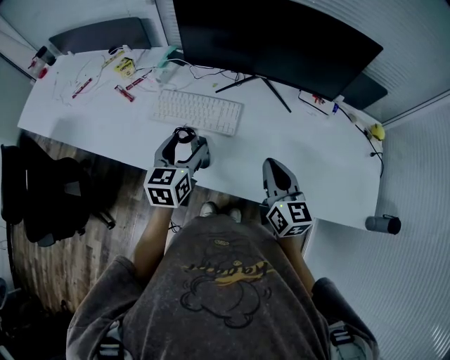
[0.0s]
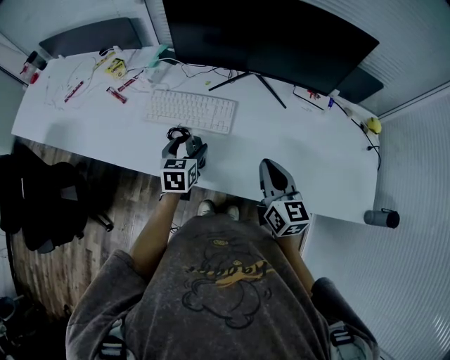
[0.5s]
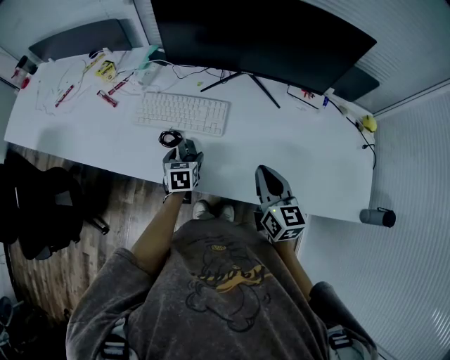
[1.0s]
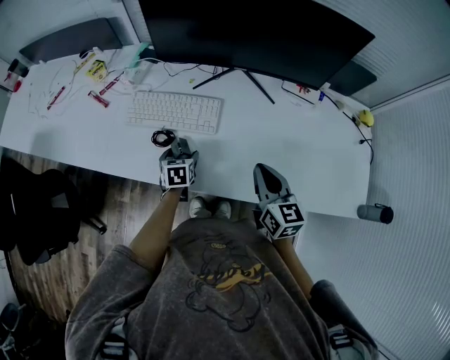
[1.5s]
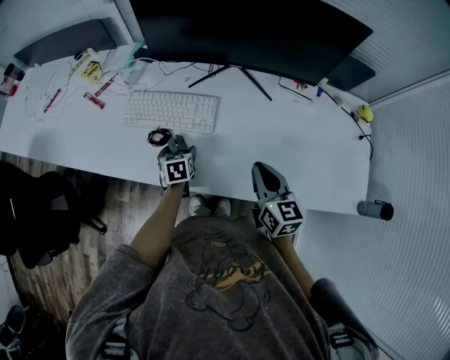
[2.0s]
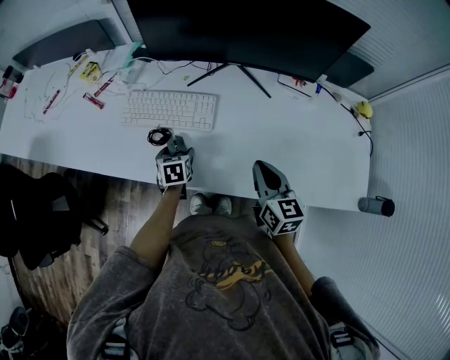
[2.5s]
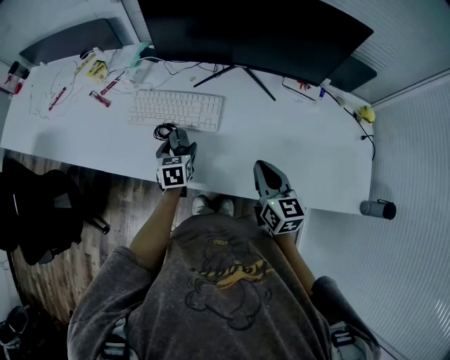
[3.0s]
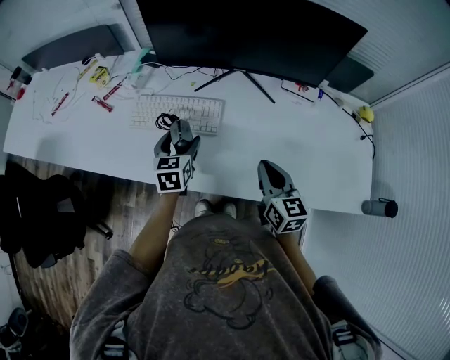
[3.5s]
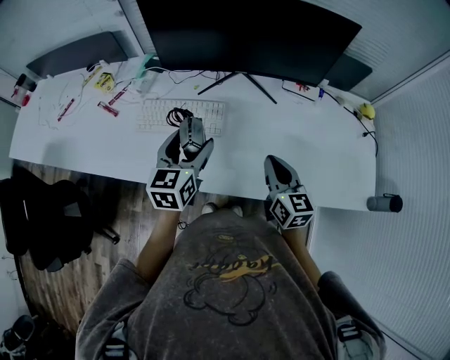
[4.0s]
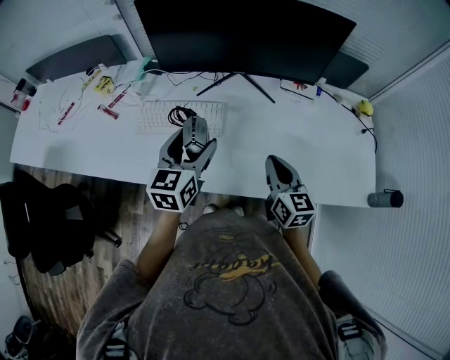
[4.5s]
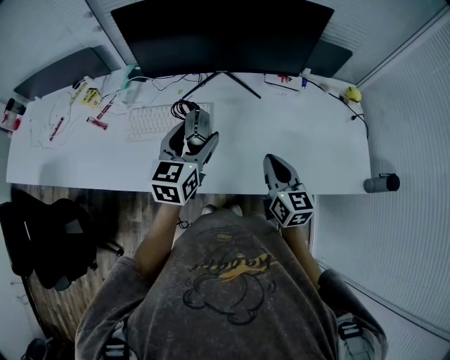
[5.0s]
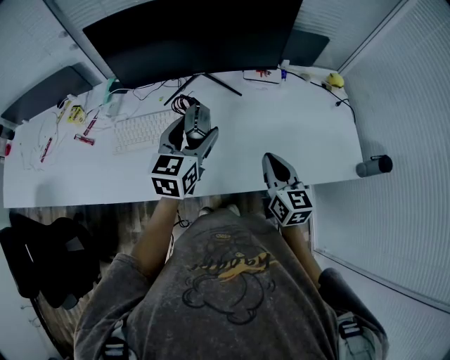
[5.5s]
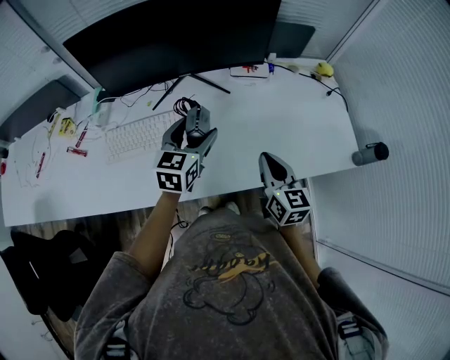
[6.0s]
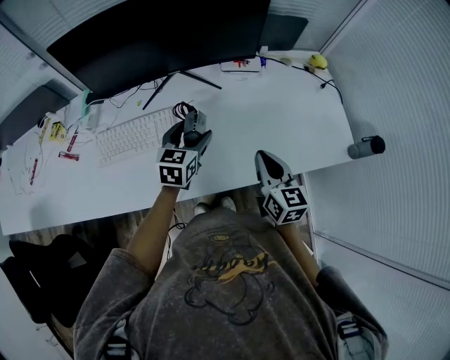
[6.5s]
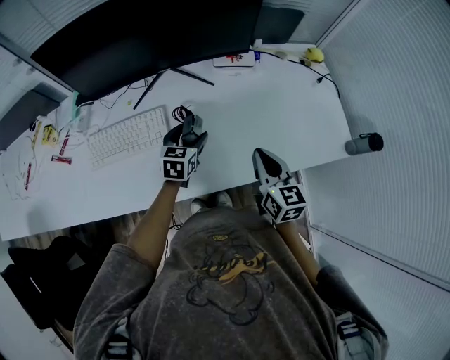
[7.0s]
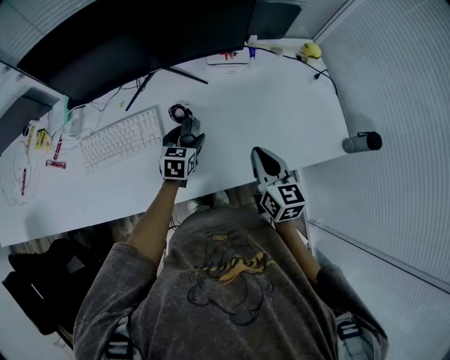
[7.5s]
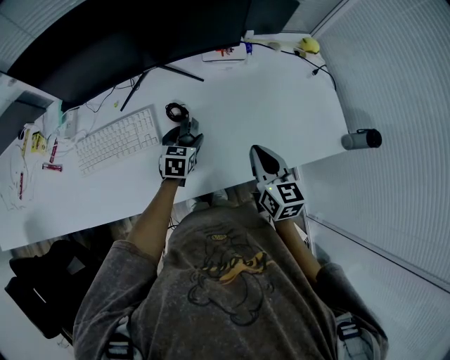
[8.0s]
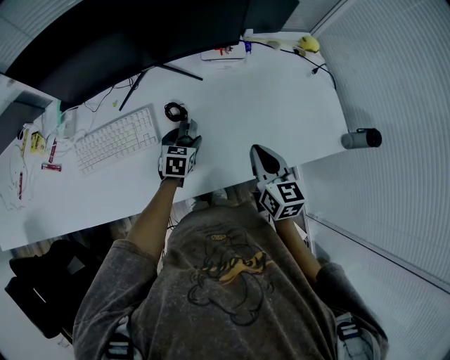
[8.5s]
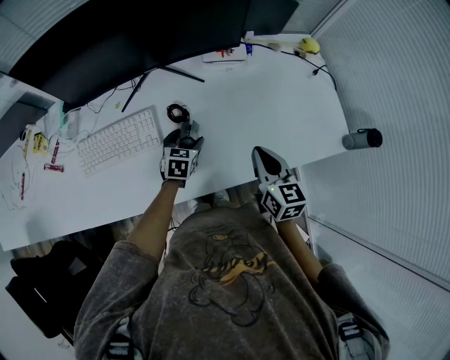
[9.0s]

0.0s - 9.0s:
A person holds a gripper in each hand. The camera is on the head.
0.0s - 2.0s: The right gripper ends up roughly 5 cm from where it was, while the left gripper is displaced downward by about 20 cm, and swivels some 30 degrees.
2.0s - 4.5s: The left gripper heads upward, covering approximately 25 cm, and tips its fingers upward by some 40 degrees.
4.5s - 7.0s: The right gripper is displaced to the right by roughly 10 cm; the left gripper heads downward, to the right and forward, covering roughly 25 cm, and rotates some 30 degrees.
7.0s - 9.0s: The left gripper shifts roughly 10 cm downward.

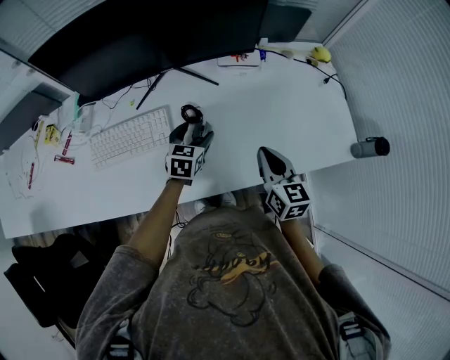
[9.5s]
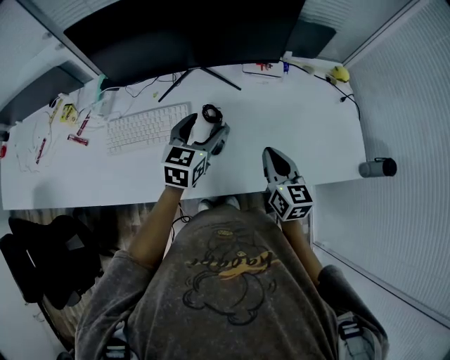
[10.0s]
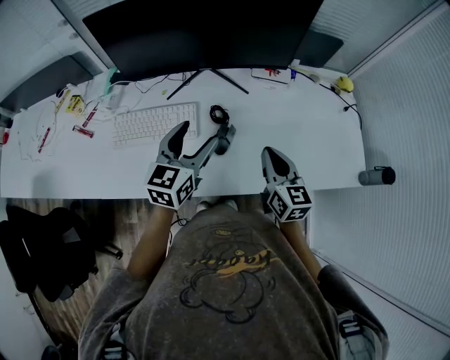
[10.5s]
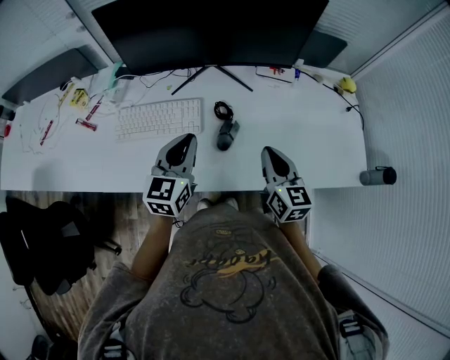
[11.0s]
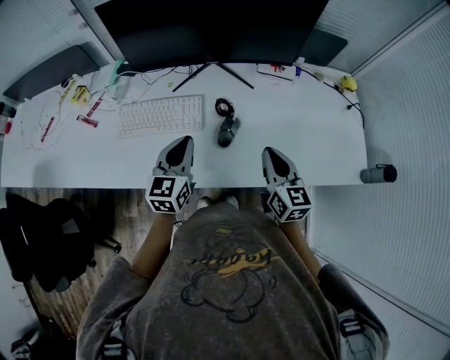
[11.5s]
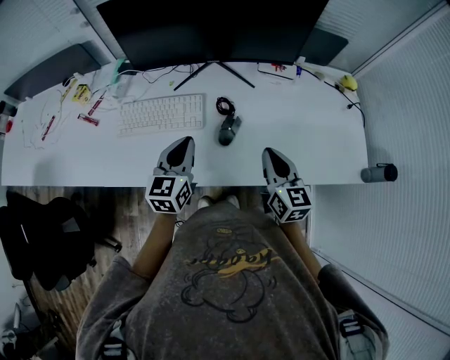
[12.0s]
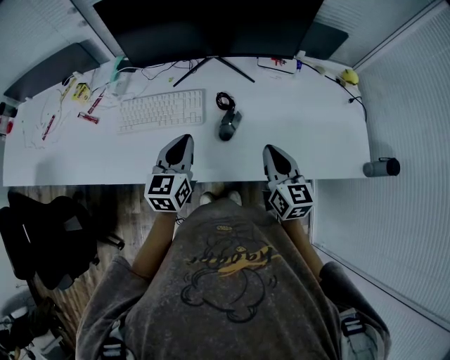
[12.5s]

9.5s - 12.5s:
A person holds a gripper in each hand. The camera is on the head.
9.5s - 11.0s: The left gripper heads upward, backward and to the left, covering roughly 20 cm, swivels about 30 degrees, and closes up; the right gripper is displaced to the left by about 5 cm.
11.0s - 12.5s: There are only small adjustments of the grippers.

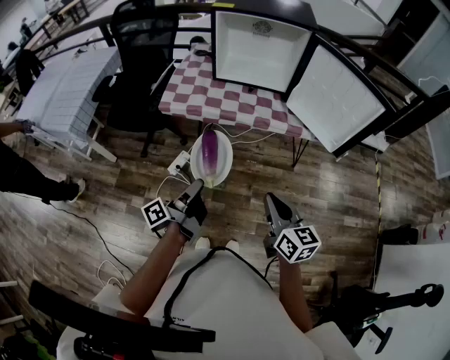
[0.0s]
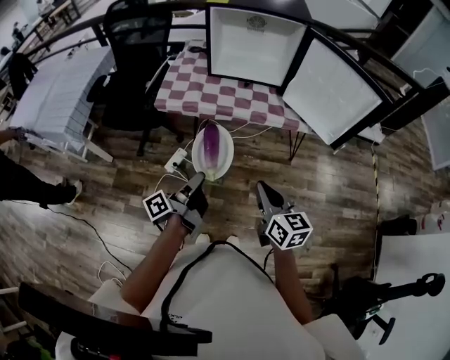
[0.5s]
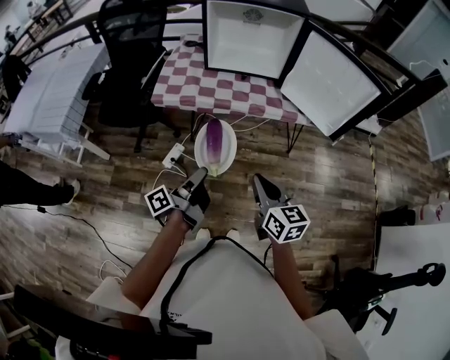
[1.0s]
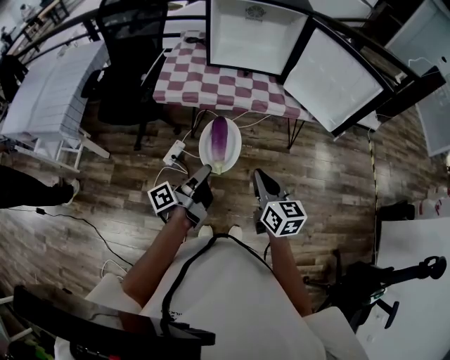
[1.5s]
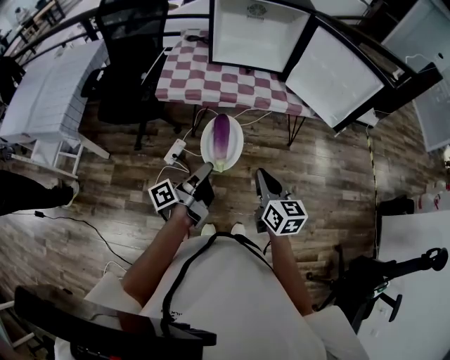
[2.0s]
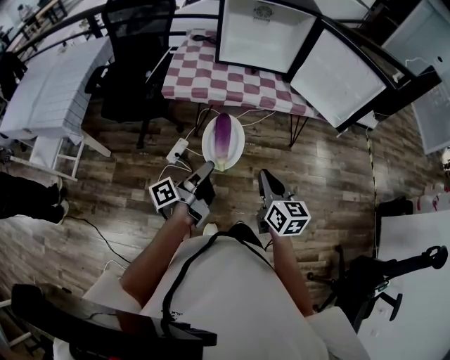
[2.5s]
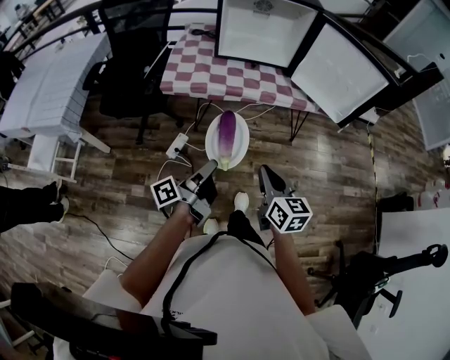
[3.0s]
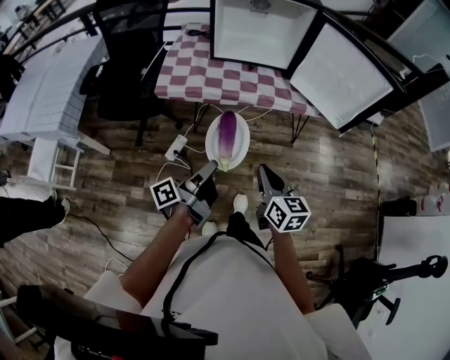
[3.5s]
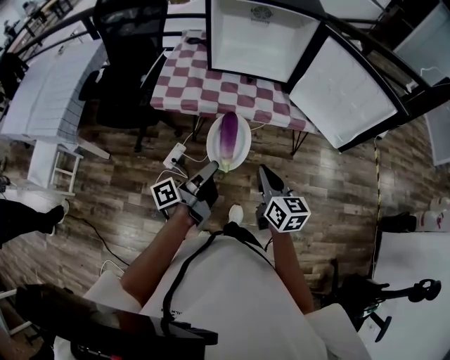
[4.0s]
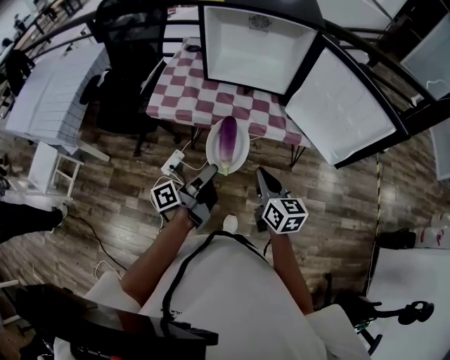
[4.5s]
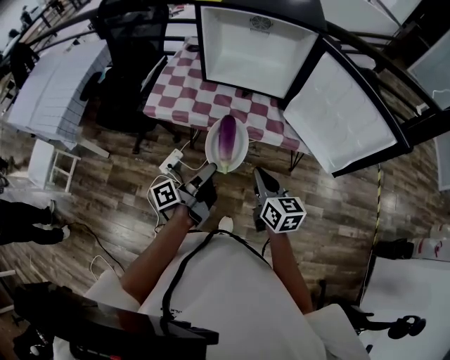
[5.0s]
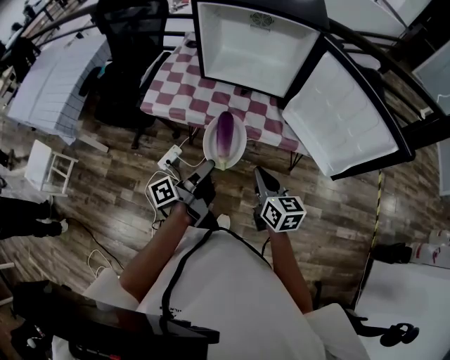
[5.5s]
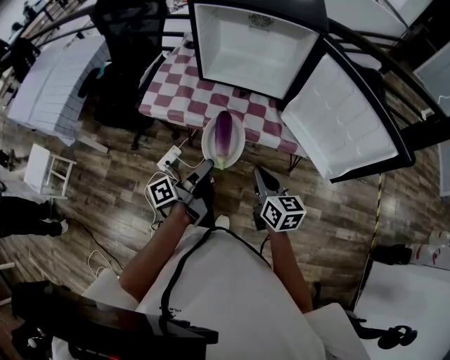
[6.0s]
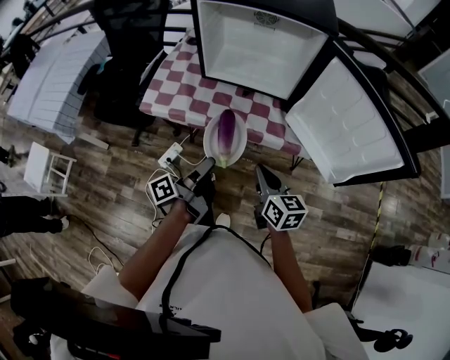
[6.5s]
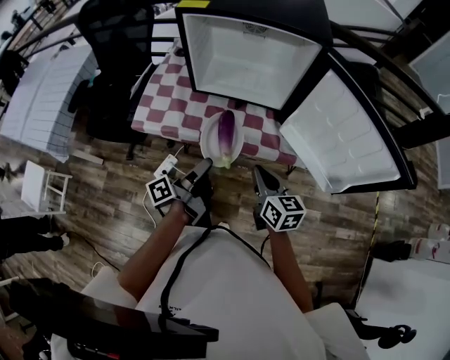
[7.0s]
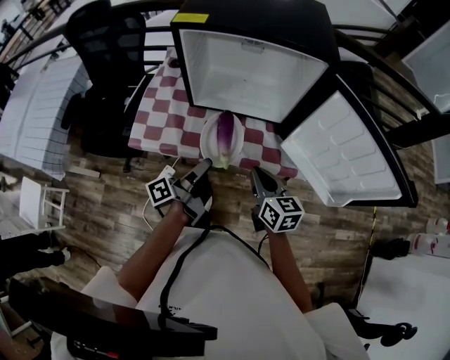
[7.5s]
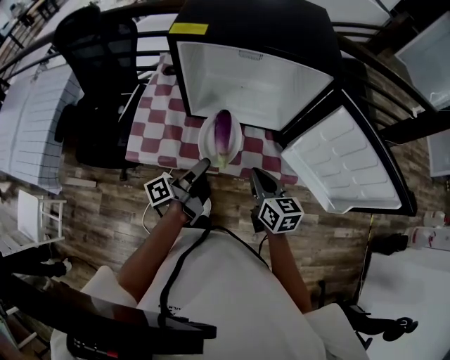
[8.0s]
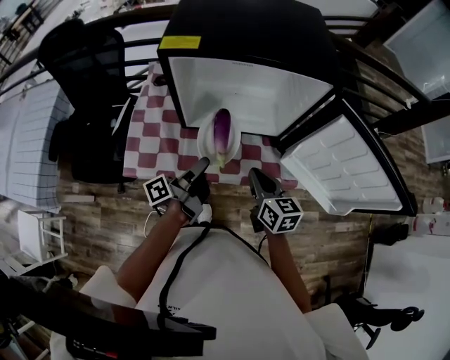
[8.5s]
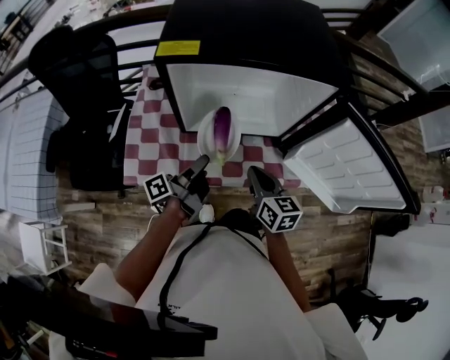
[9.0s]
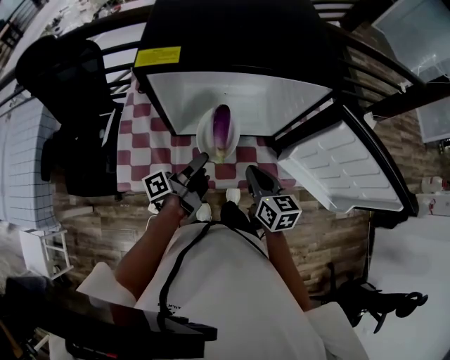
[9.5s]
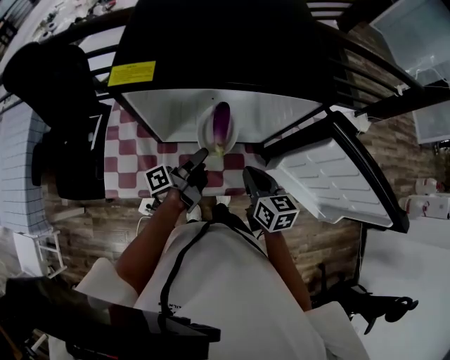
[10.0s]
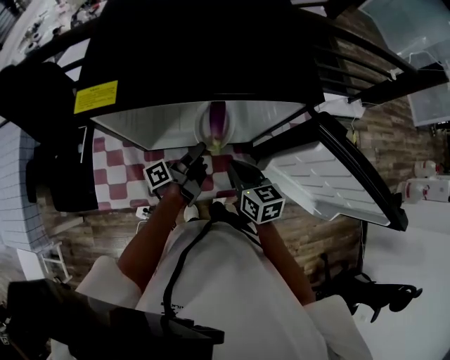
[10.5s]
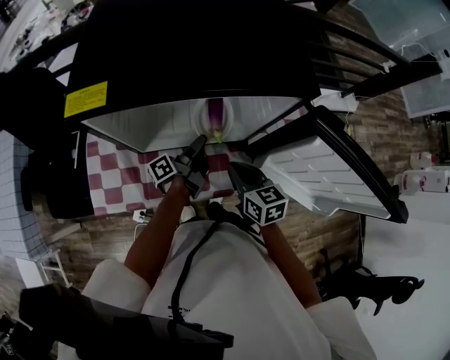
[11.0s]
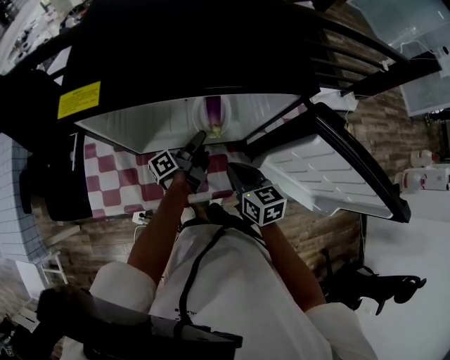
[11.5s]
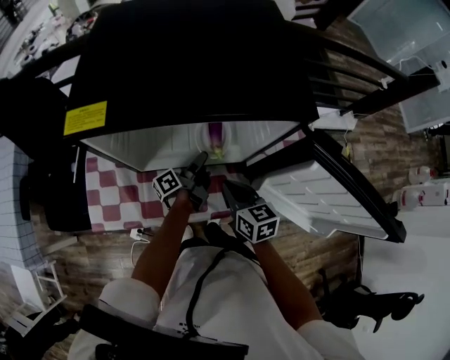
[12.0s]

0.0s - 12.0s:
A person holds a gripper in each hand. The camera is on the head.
0.0s - 2.0s: The right gripper changes place by some 10 cm.
2.0s - 4.0s: The right gripper changes place by some 15 cm.
4.0s - 6.0s: The right gripper changes place by some 15 cm.
6.0s - 8.0s: The right gripper ends up approximately 20 cm from where it was.
8.0s - 10.0s: The right gripper ends up roughly 10 cm from where it was.

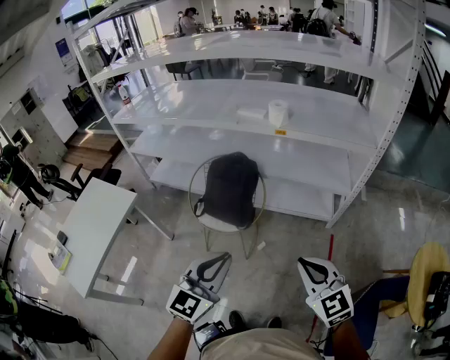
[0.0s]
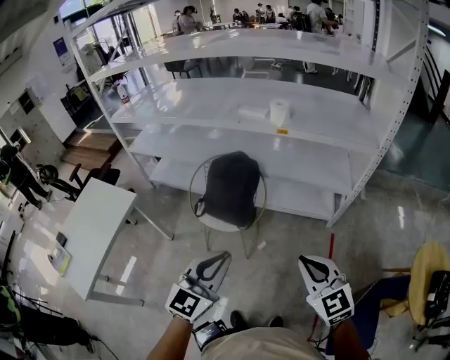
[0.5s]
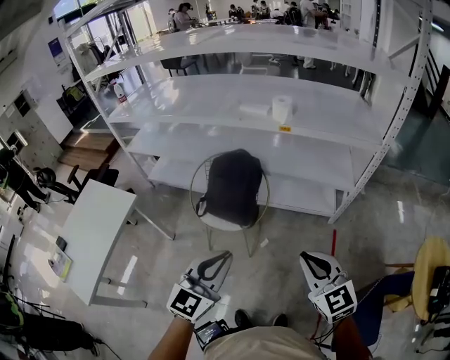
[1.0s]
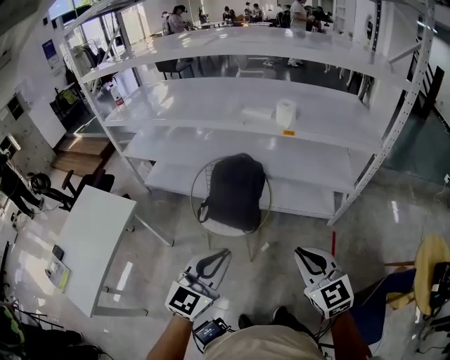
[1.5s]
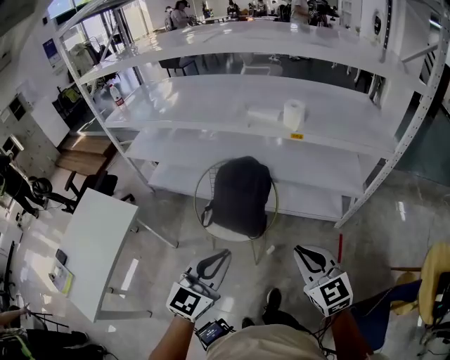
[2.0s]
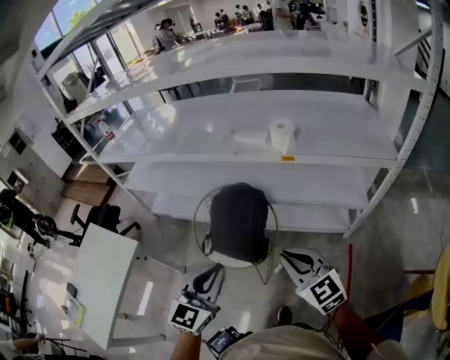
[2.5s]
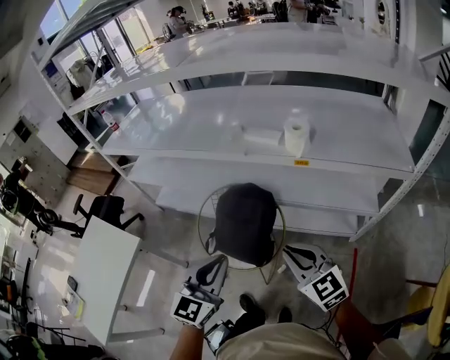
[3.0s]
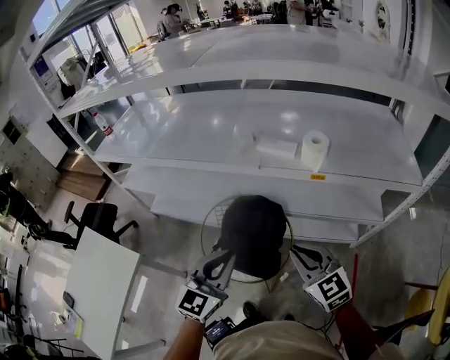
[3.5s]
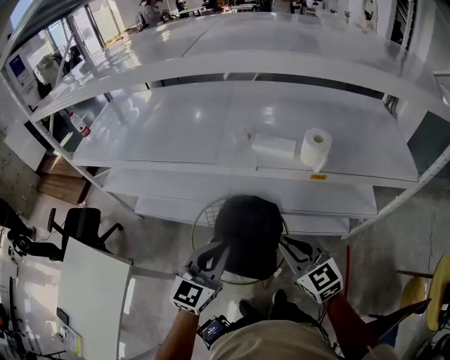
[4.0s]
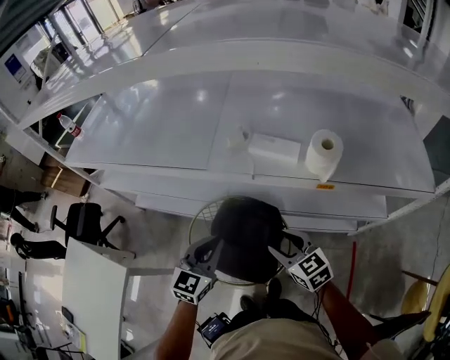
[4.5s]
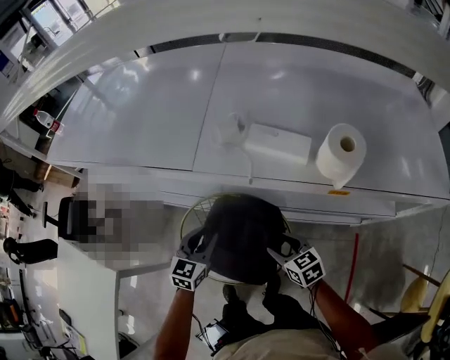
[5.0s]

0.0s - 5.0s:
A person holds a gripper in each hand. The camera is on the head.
0.0s - 2.5s: Both grippers travel together forward, some 20 cm.
2.5s - 5.0s: The two grippers go some 50 cm forward and downward. The right gripper rotates some 40 degrees, and opens. The left gripper rotates about 20 degrees.
